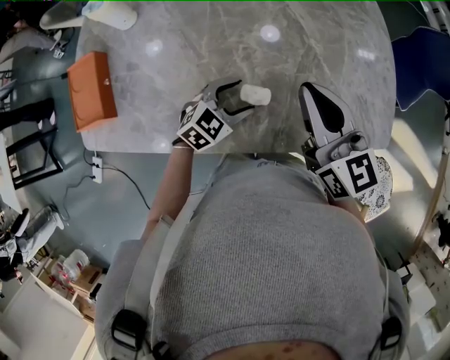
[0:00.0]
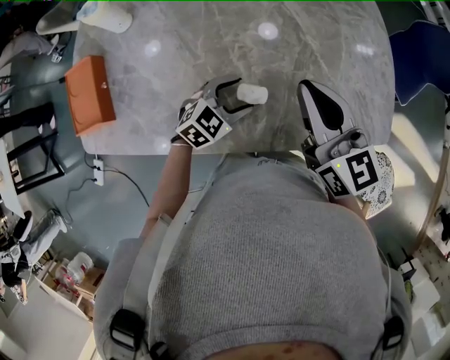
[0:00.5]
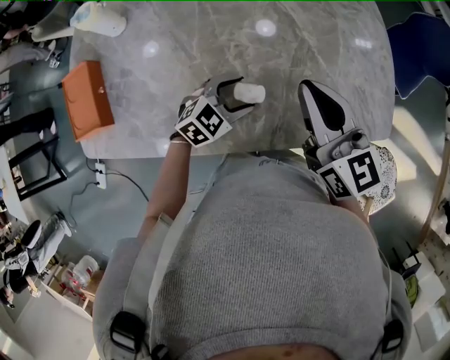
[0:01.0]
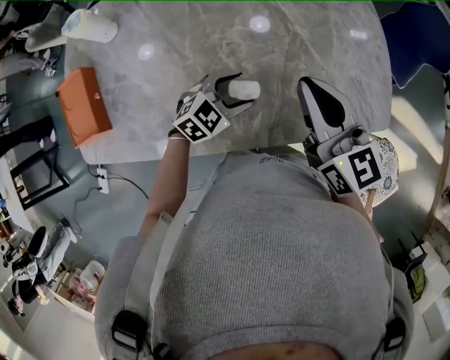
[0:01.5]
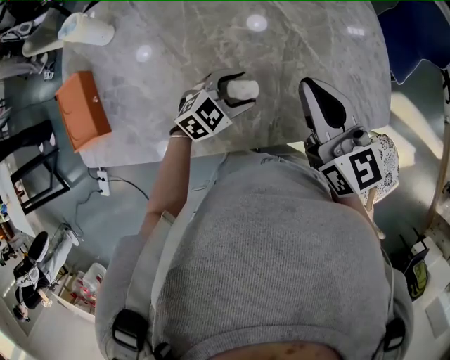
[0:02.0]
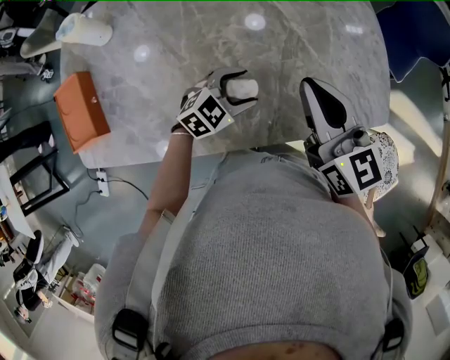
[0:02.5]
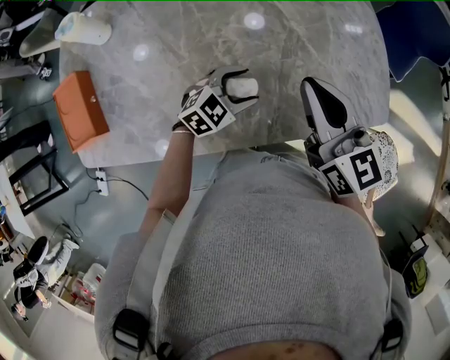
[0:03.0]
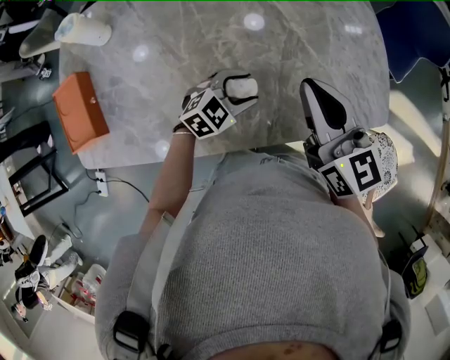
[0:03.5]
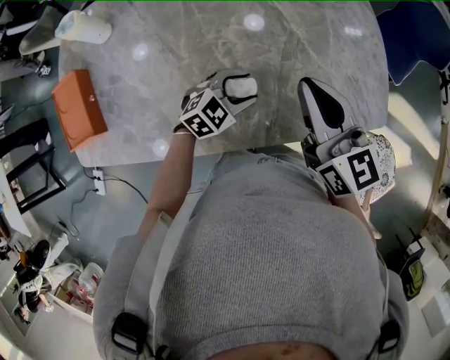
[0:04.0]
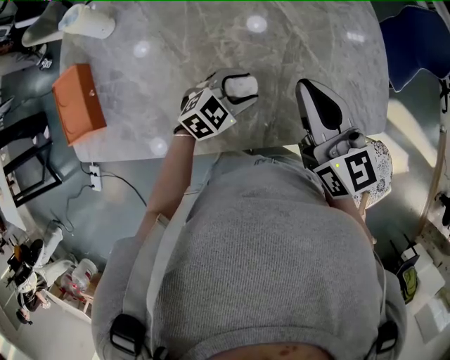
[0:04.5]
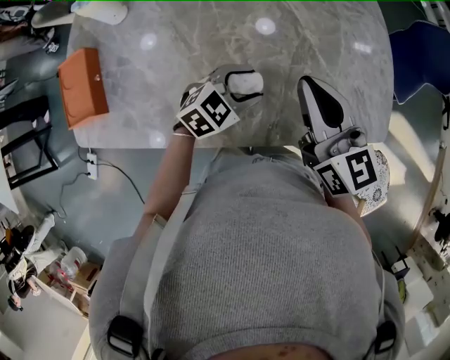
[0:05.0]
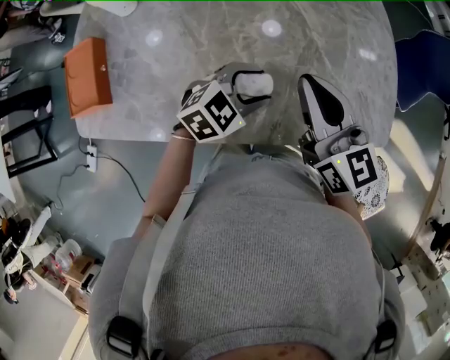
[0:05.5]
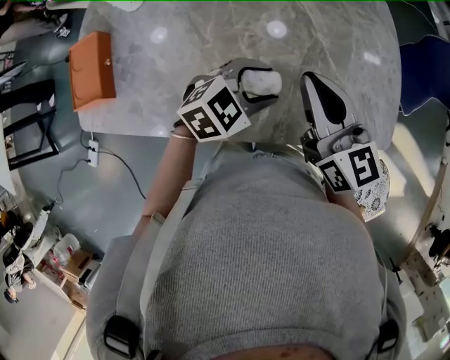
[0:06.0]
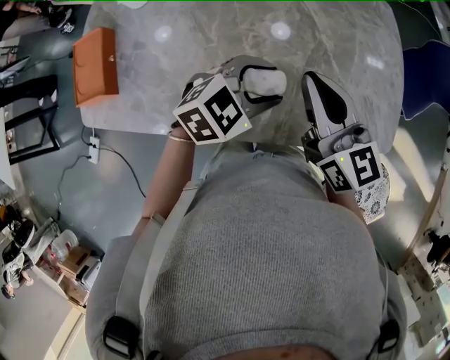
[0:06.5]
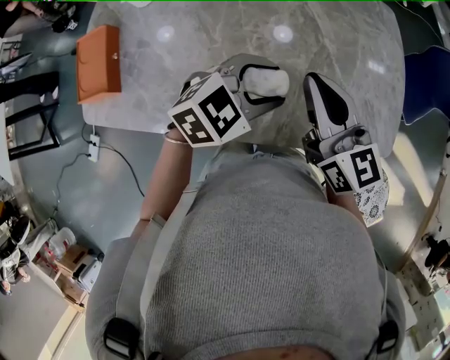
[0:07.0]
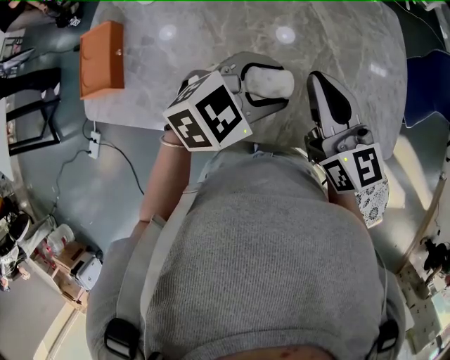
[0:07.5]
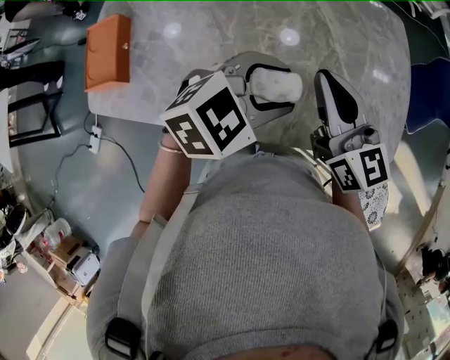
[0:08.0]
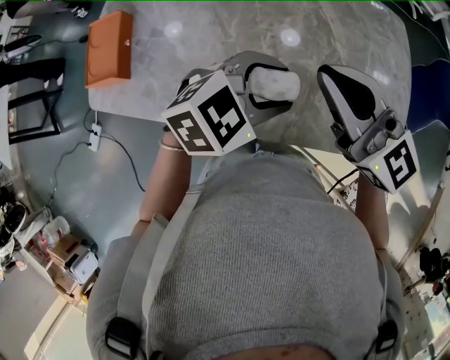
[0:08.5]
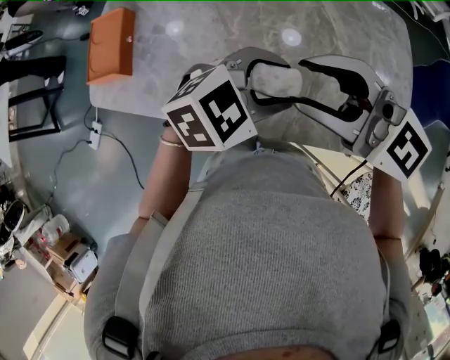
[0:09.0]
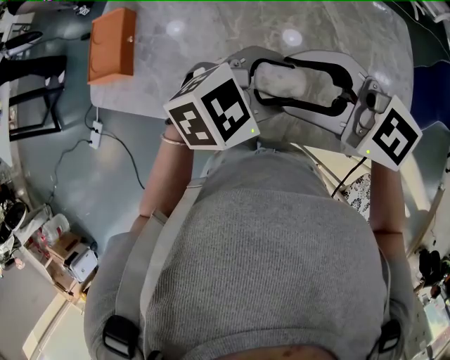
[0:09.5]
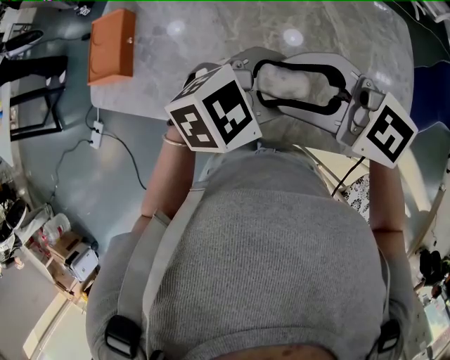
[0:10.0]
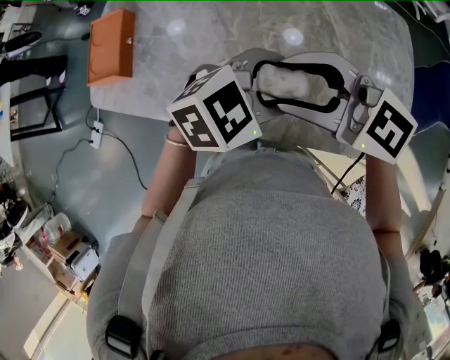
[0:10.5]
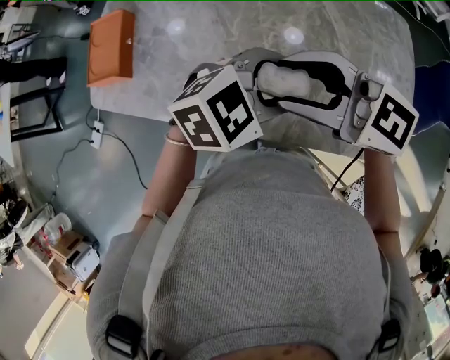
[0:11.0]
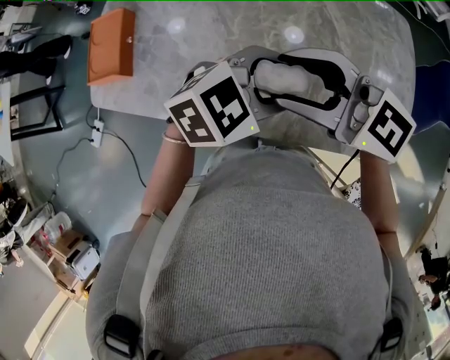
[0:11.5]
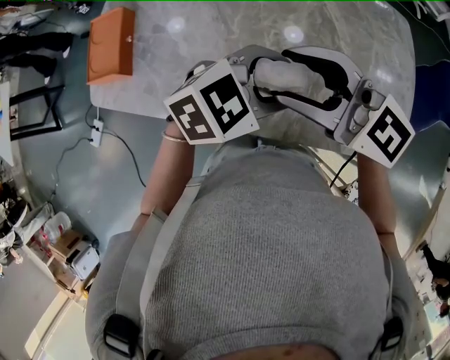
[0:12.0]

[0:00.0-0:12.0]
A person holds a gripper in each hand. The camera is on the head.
0:00.0 to 0:04.0: The grippers move only a little.
0:04.0 to 0:06.0: The left gripper moves upward, some 10 cm.
0:06.0 to 0:08.0: The left gripper travels upward by approximately 10 cm.
0:08.0 to 0:10.0: The right gripper moves some 10 cm, swivels about 60 degrees, and opens.
0:10.0 to 0:12.0: The grippers stay close to where they were, moving slightly.

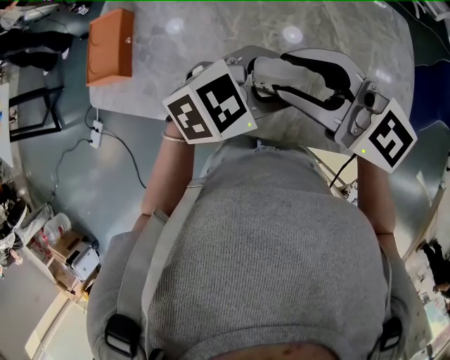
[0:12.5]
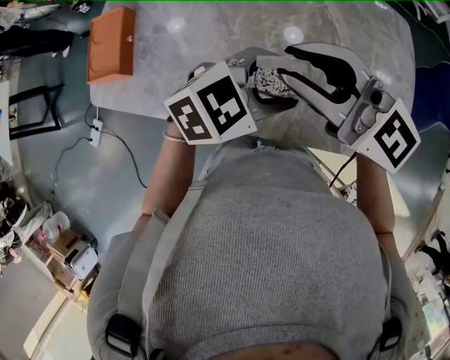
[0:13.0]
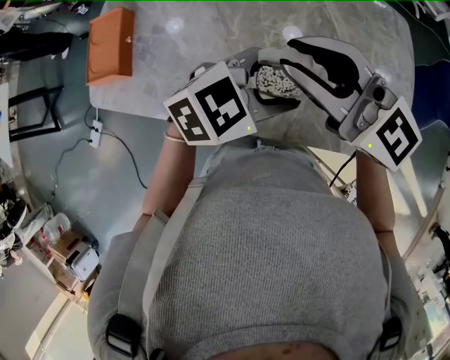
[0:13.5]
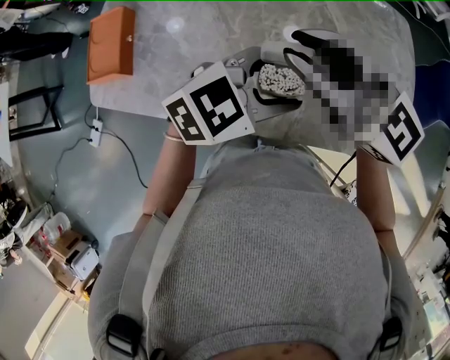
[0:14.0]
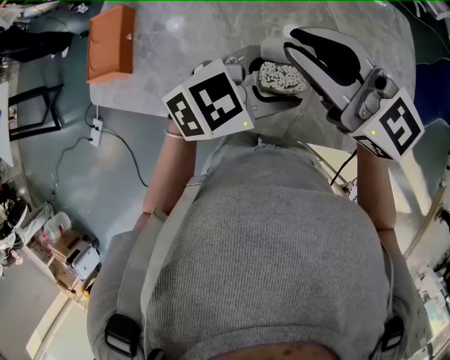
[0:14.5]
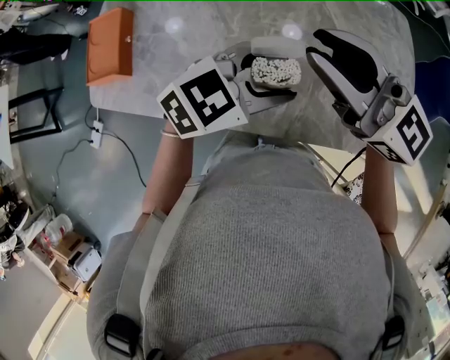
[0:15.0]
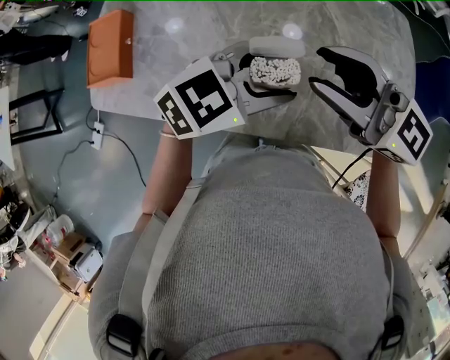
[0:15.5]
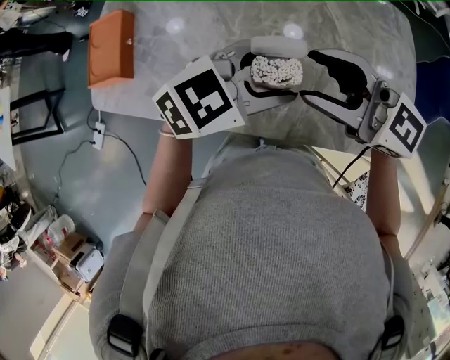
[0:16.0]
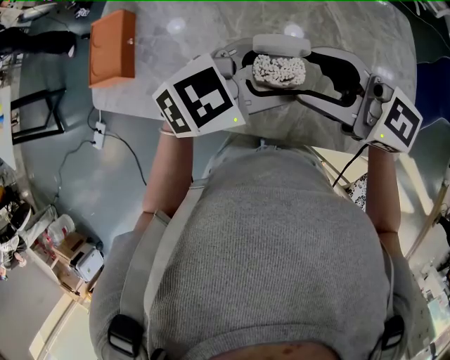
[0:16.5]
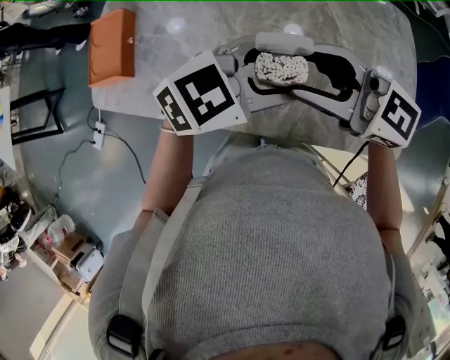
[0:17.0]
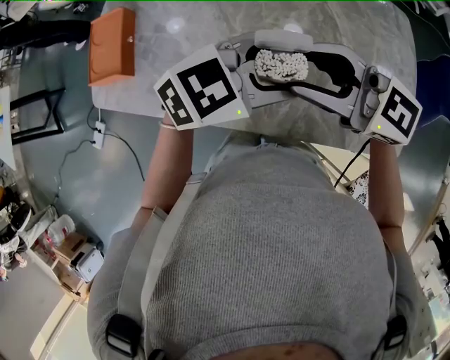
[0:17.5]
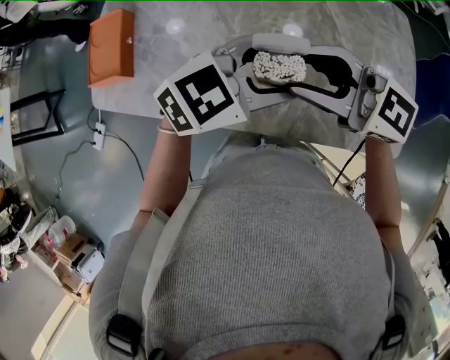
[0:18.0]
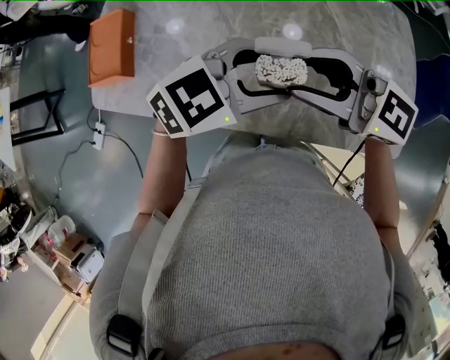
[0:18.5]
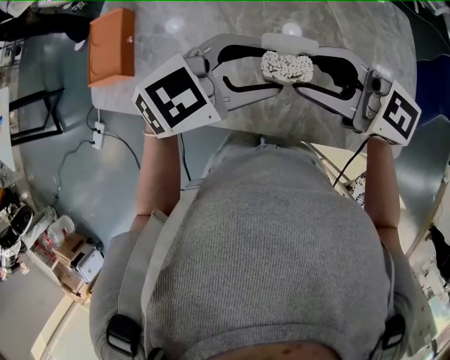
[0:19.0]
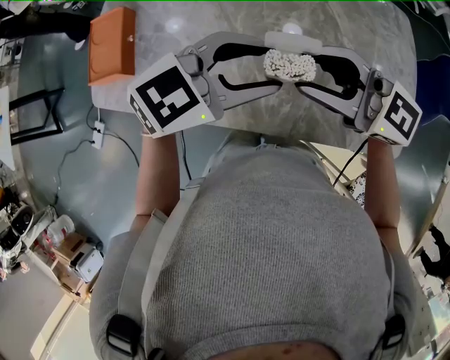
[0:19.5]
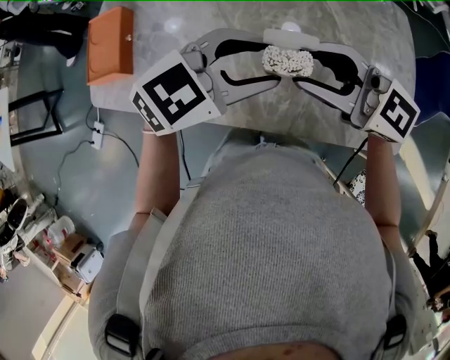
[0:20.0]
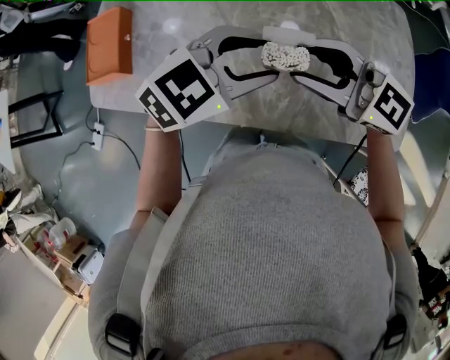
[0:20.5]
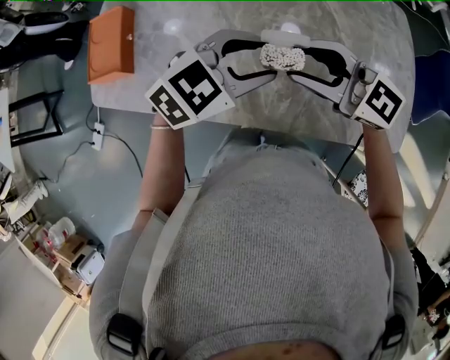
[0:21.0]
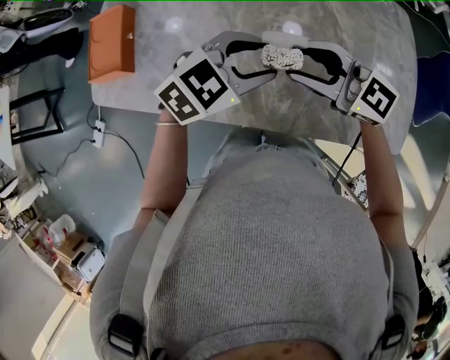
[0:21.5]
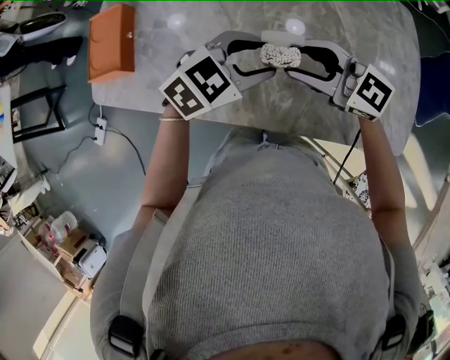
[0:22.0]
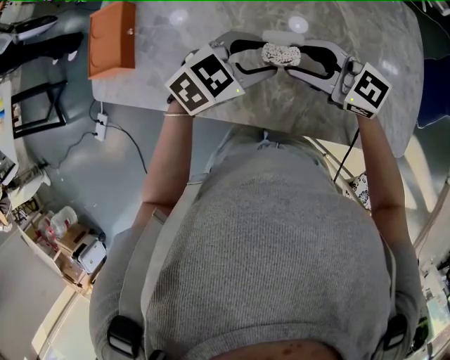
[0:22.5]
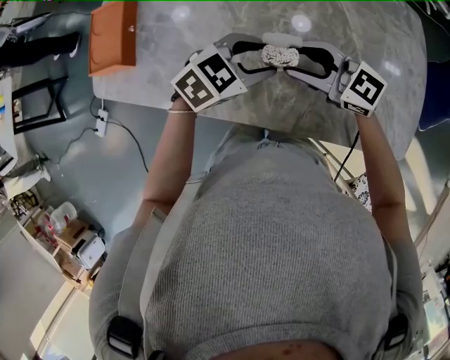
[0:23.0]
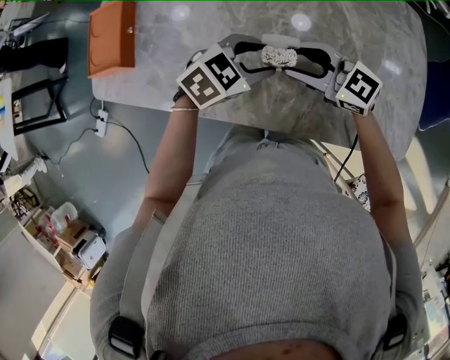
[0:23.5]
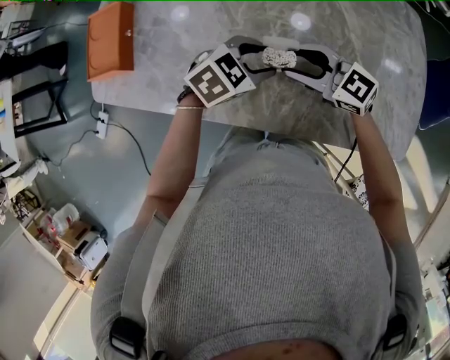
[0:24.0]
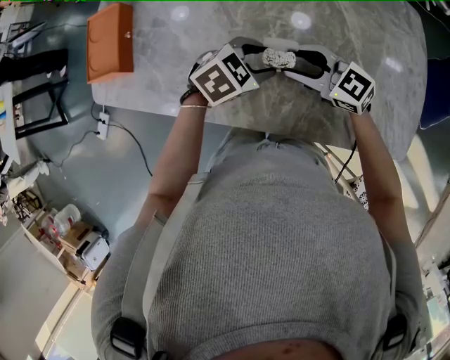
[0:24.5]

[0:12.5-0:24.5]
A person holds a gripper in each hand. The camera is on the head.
0:12.5 to 0:14.5: The right gripper closes up.
0:14.5 to 0:16.5: The right gripper changes place by about 5 cm, and opens its fingers.
0:16.5 to 0:20.5: There are only small adjustments of the grippers.
0:20.5 to 0:22.5: Both grippers travel together downward, about 10 cm.
0:22.5 to 0:24.5: Both grippers travel together downward, roughly 10 cm.

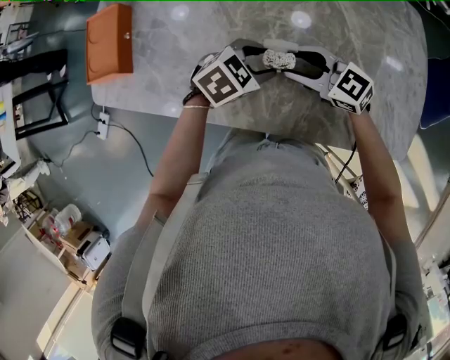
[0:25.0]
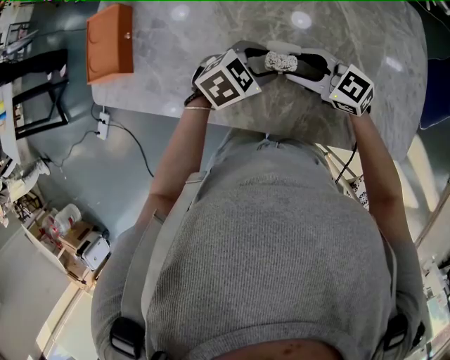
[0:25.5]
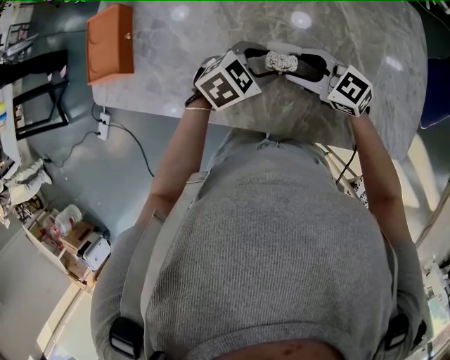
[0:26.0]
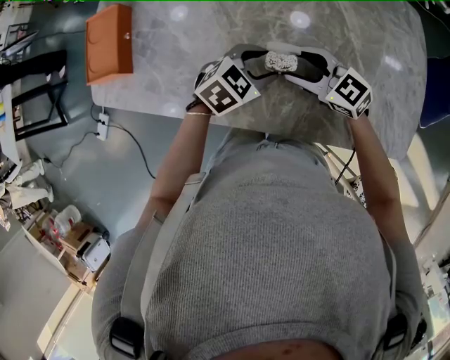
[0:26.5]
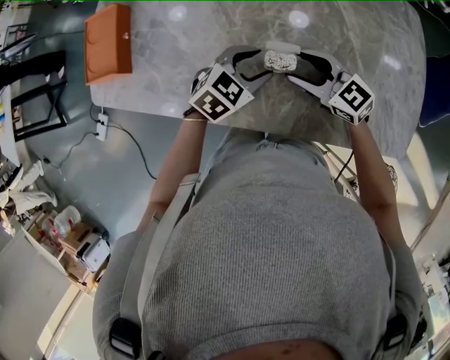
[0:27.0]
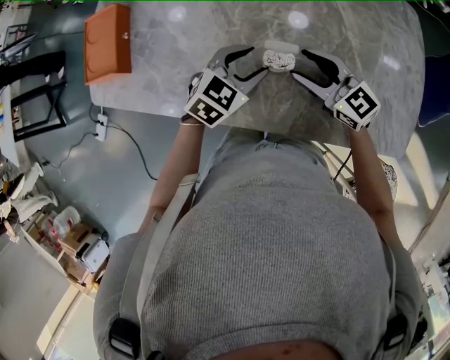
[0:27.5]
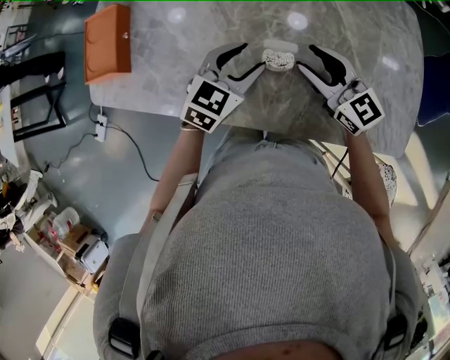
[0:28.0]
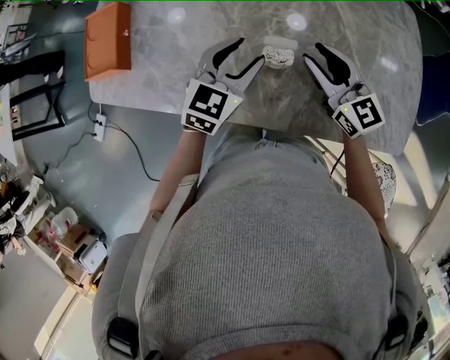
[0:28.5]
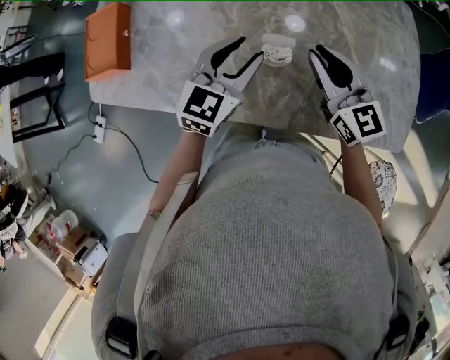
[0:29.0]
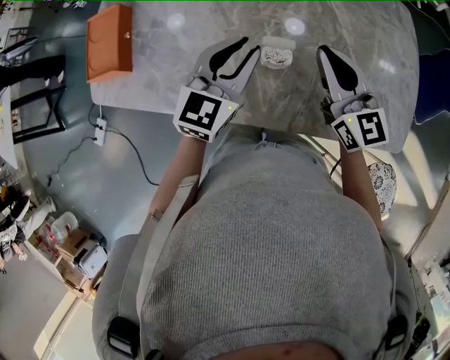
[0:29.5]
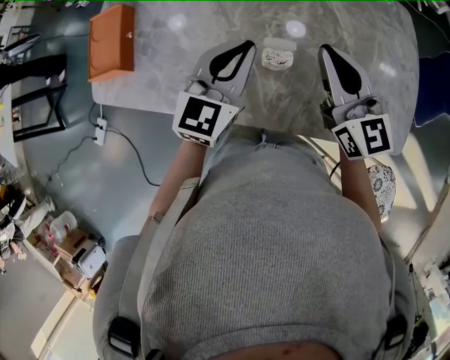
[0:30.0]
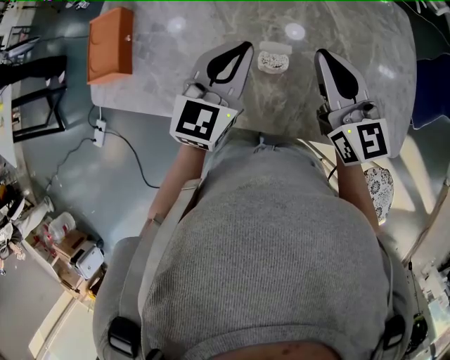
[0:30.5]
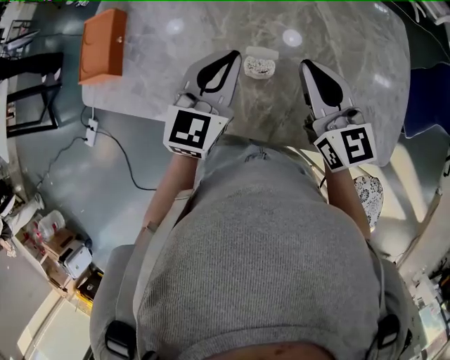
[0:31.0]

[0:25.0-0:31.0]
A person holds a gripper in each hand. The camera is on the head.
0:25.0 to 0:27.0: The grippers make only small movements.
0:27.0 to 0:29.0: The grippers both shift upward by some 10 cm. The right gripper changes its angle by roughly 30 degrees, and closes its fingers. The left gripper swivels some 30 degrees.
0:29.0 to 0:31.0: The left gripper is displaced upward by roughly 5 cm, and closes up.
